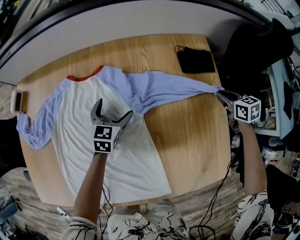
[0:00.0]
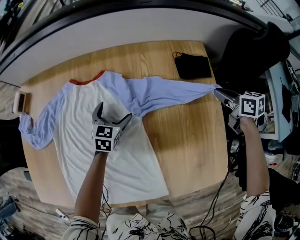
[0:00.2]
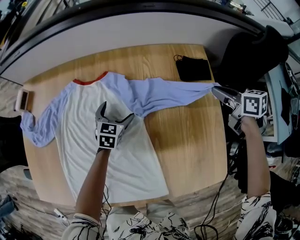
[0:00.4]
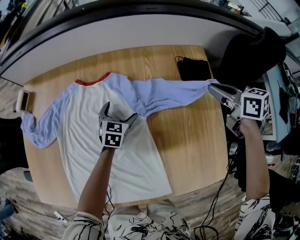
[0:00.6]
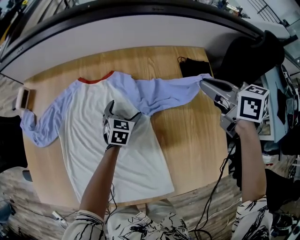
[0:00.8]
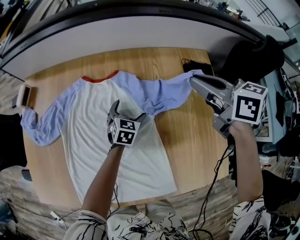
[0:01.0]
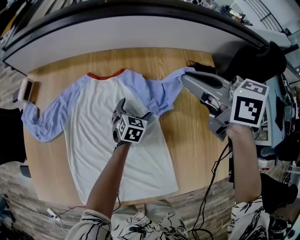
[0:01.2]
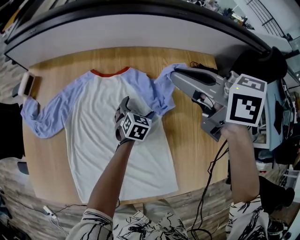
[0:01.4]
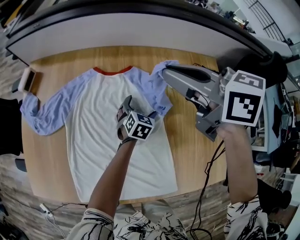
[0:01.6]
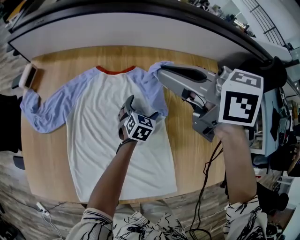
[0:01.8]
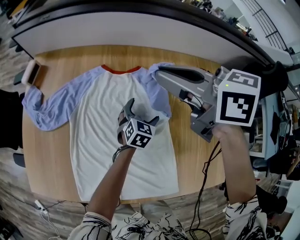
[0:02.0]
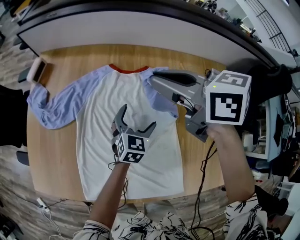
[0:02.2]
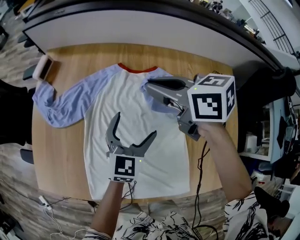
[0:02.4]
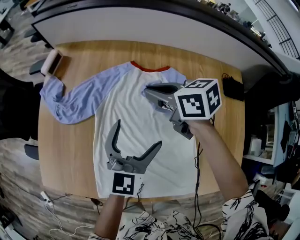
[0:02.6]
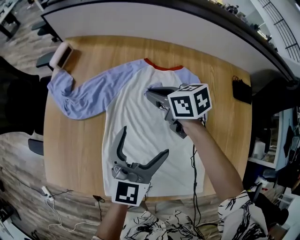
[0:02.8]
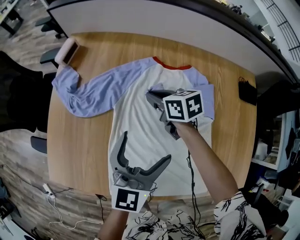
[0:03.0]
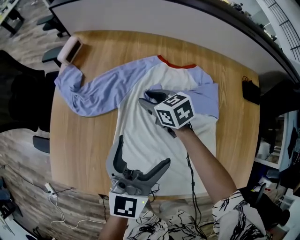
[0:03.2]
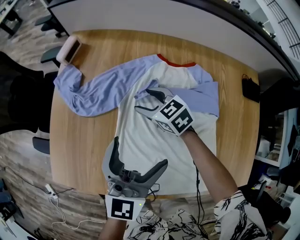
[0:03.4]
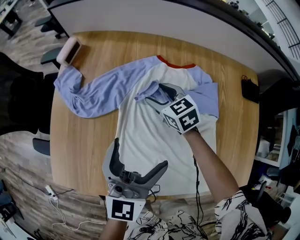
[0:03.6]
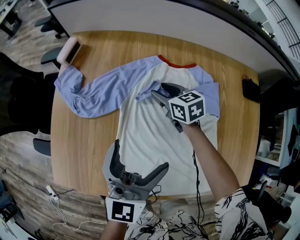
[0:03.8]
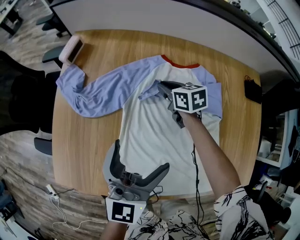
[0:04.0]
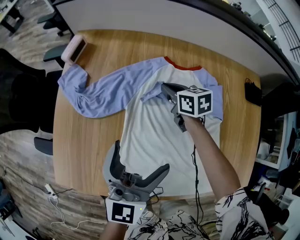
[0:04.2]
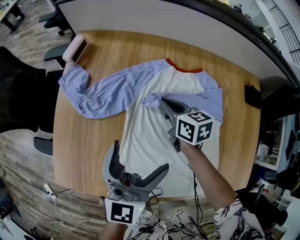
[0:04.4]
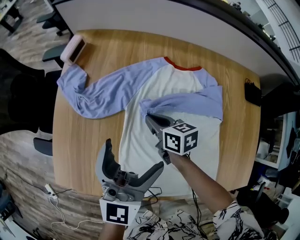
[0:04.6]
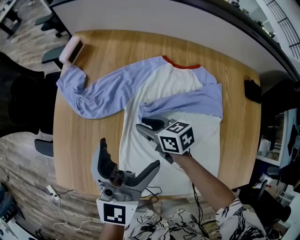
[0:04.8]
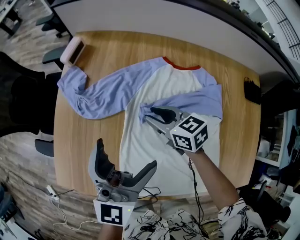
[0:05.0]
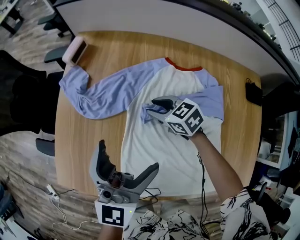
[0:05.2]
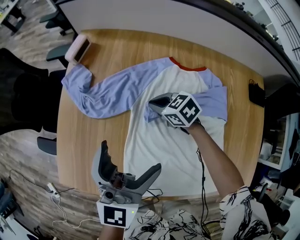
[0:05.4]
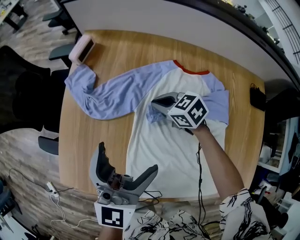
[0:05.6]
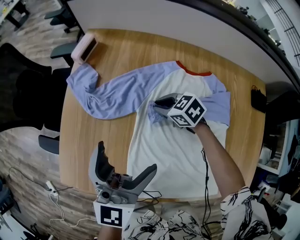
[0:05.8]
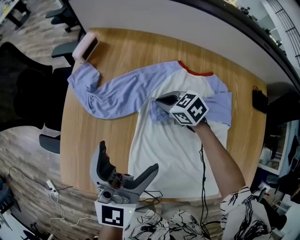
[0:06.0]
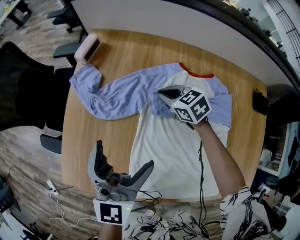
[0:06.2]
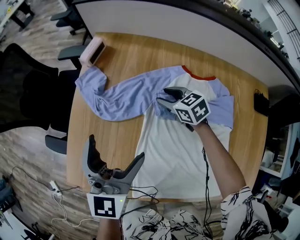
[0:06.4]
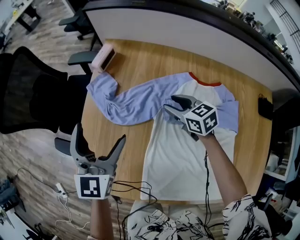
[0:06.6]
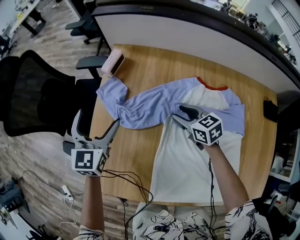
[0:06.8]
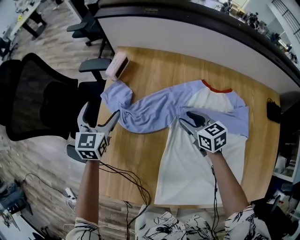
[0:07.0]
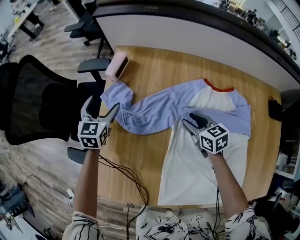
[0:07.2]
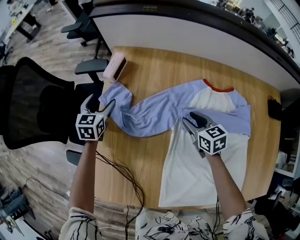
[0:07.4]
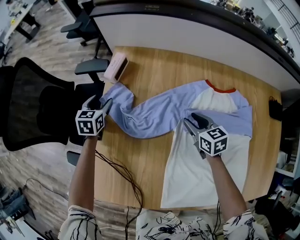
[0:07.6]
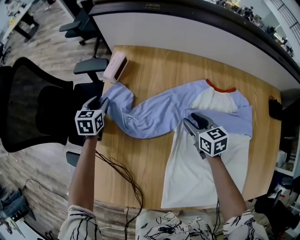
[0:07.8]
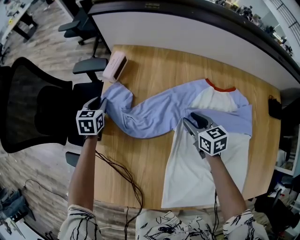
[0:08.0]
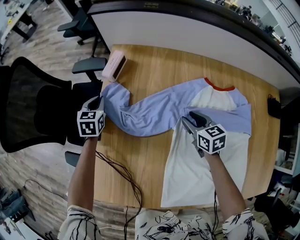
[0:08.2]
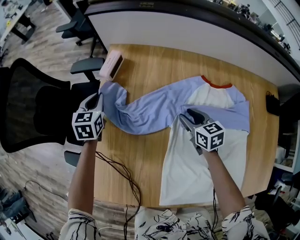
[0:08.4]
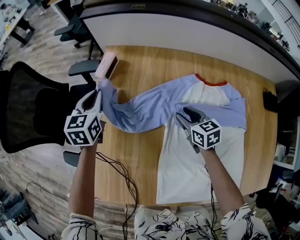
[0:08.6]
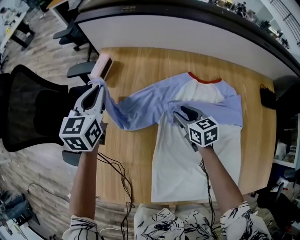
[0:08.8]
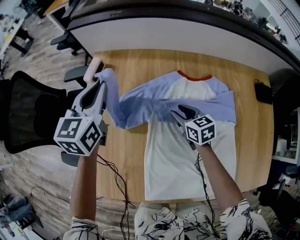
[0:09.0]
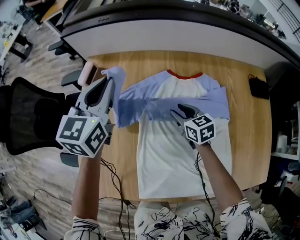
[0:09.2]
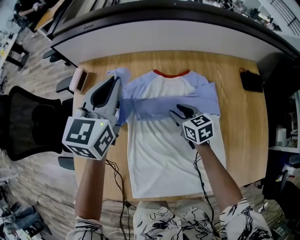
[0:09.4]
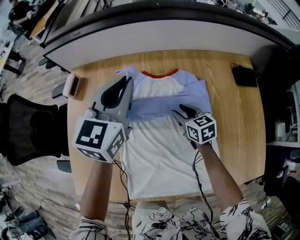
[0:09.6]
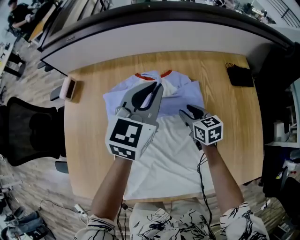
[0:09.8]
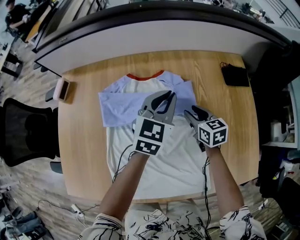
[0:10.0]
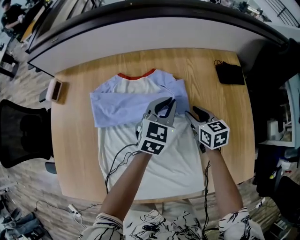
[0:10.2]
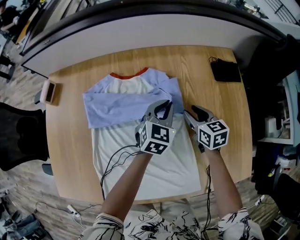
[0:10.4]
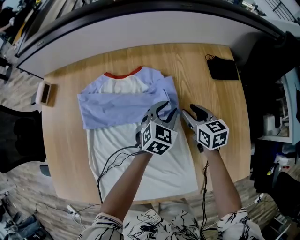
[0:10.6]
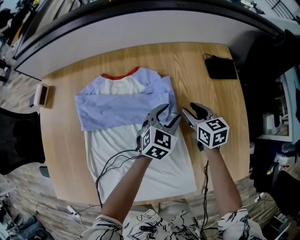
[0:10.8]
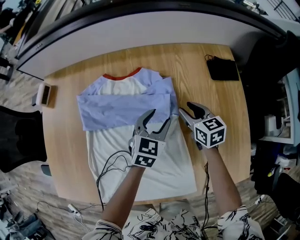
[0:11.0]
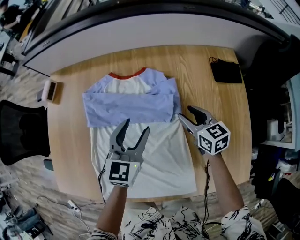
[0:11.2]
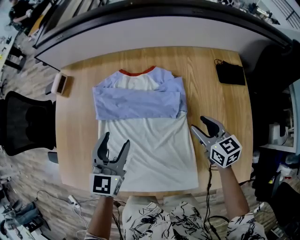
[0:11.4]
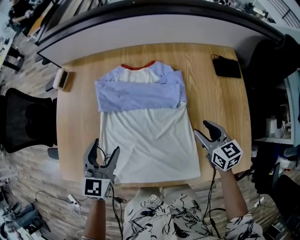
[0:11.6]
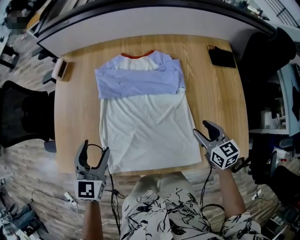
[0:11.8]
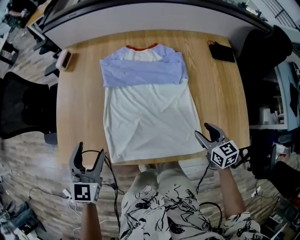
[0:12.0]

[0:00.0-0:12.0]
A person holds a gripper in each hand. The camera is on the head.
0:00.0 to 0:01.6: The right gripper travels to the left and upward by about 50 cm, and swivels some 40 degrees.
0:01.6 to 0:03.0: The left gripper travels to the left and upward by about 35 cm, and tilts its fingers about 30 degrees upward. Meanwhile the right gripper heads downward and to the left, covering about 35 cm.
0:03.0 to 0:04.4: The right gripper goes to the left and returns, some 5 cm each way, and opens, then closes again. Meanwhile the left gripper travels to the left by some 5 cm.
0:04.4 to 0:06.0: The left gripper moves to the left, about 5 cm; the right gripper travels downward and to the left by roughly 10 cm, and swivels some 40 degrees.
0:06.0 to 0:07.6: The left gripper moves forward, downward and to the left, some 40 cm, angles its fingers downward, by about 40 degrees, and closes its fingers; the right gripper turns by about 30 degrees.
0:07.6 to 0:09.0: The left gripper shifts roughly 30 cm upward and to the right, swivels some 20 degrees, and closes its fingers, while the right gripper travels to the right by roughly 5 cm.
0:09.0 to 0:10.4: Both grippers move to the right, about 40 cm. The left gripper swivels roughly 30 degrees.
0:10.4 to 0:12.0: The left gripper shifts roughly 50 cm to the left and backward, rotates roughly 20 degrees, and opens, while the right gripper travels backward by about 25 cm.

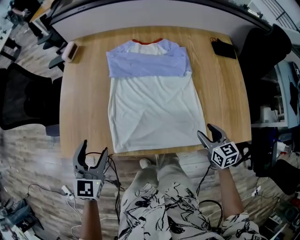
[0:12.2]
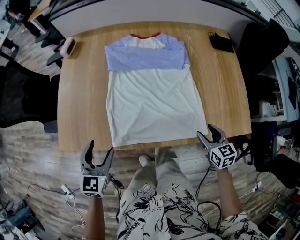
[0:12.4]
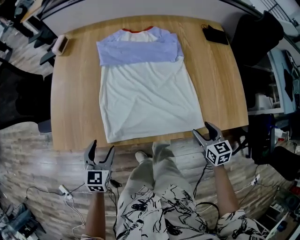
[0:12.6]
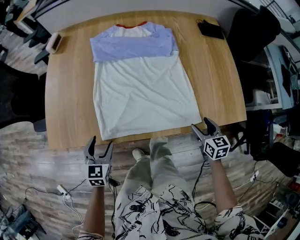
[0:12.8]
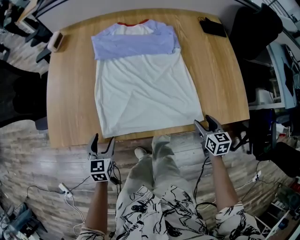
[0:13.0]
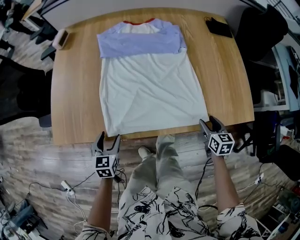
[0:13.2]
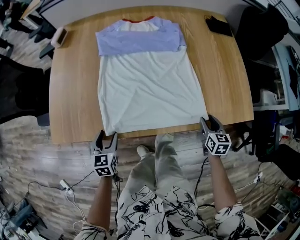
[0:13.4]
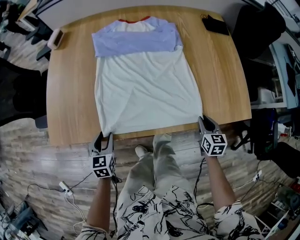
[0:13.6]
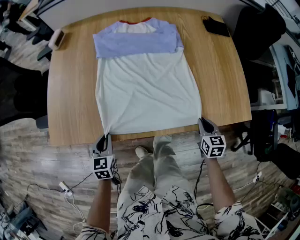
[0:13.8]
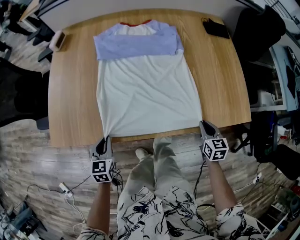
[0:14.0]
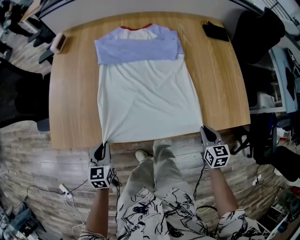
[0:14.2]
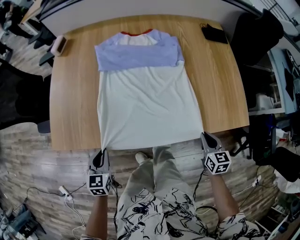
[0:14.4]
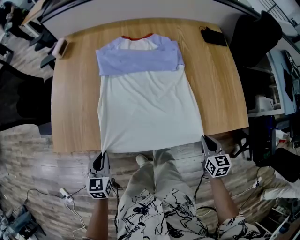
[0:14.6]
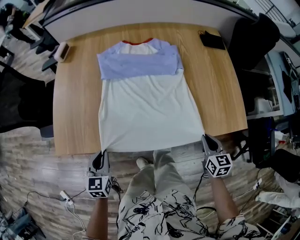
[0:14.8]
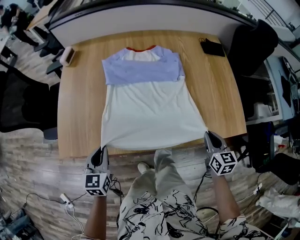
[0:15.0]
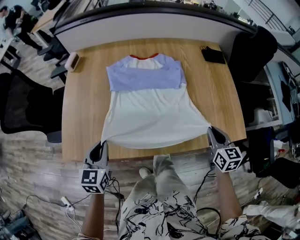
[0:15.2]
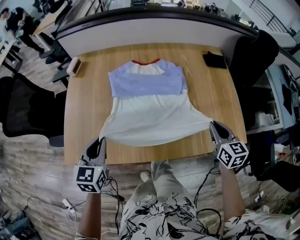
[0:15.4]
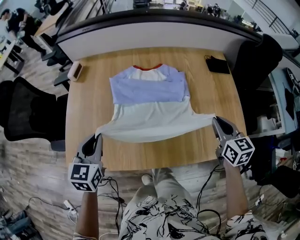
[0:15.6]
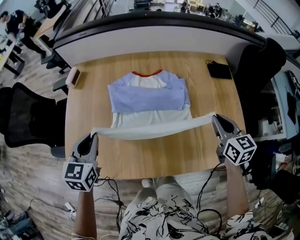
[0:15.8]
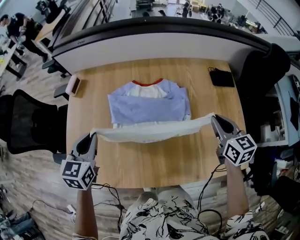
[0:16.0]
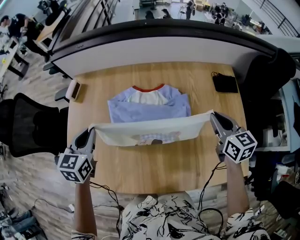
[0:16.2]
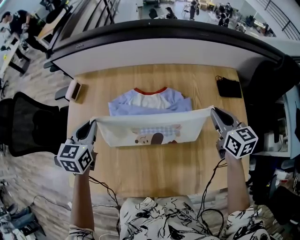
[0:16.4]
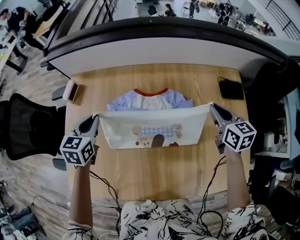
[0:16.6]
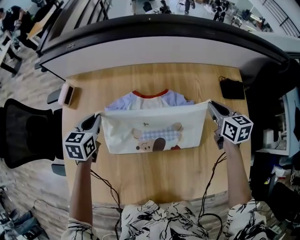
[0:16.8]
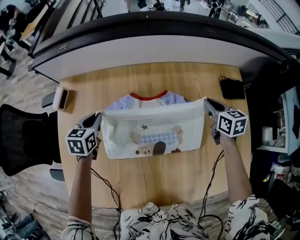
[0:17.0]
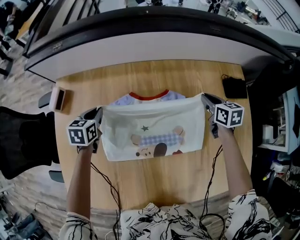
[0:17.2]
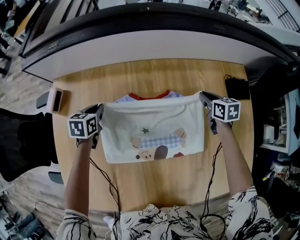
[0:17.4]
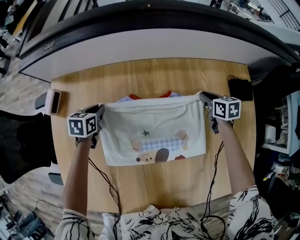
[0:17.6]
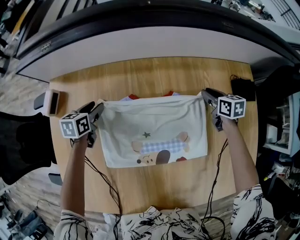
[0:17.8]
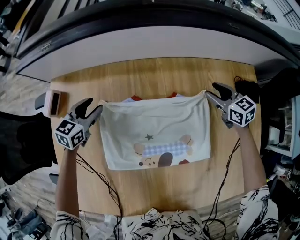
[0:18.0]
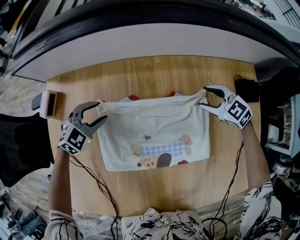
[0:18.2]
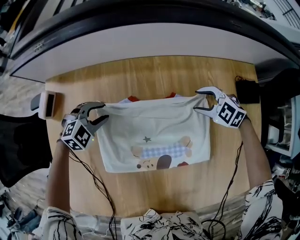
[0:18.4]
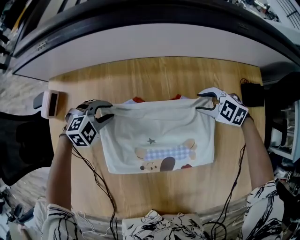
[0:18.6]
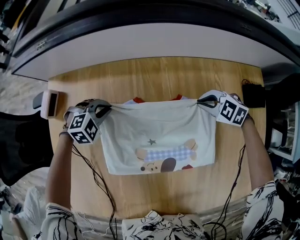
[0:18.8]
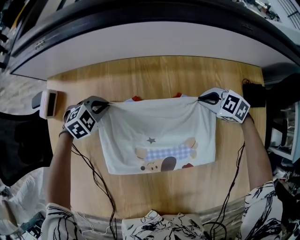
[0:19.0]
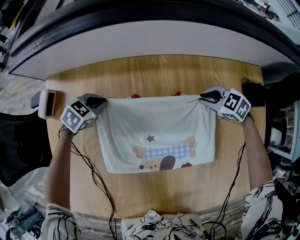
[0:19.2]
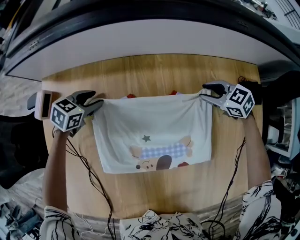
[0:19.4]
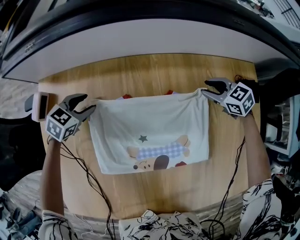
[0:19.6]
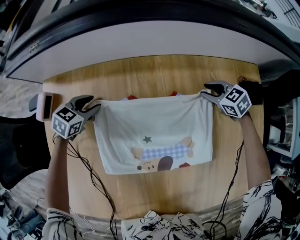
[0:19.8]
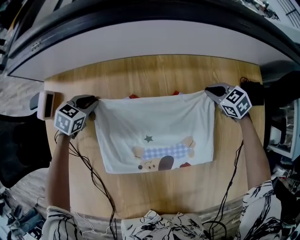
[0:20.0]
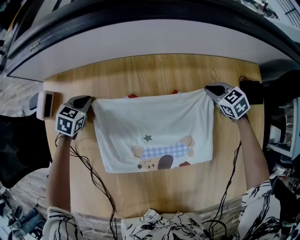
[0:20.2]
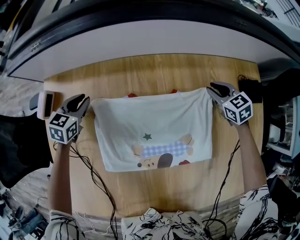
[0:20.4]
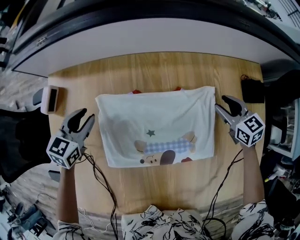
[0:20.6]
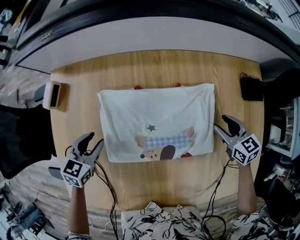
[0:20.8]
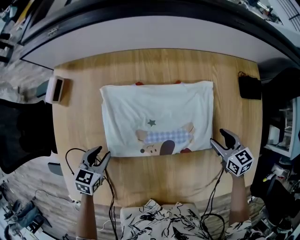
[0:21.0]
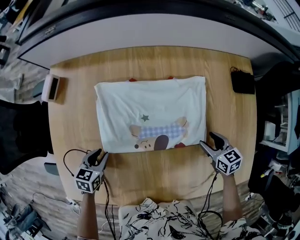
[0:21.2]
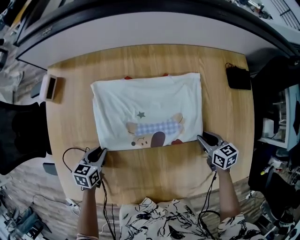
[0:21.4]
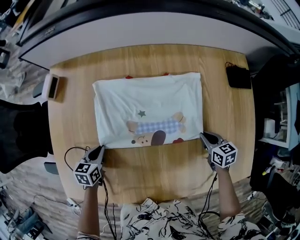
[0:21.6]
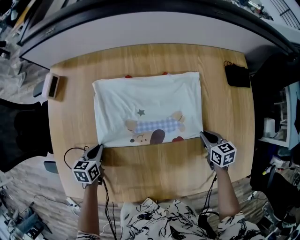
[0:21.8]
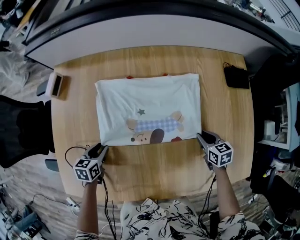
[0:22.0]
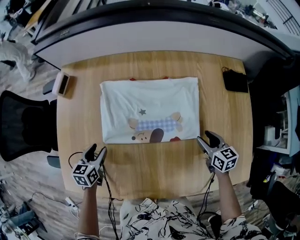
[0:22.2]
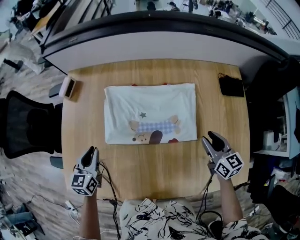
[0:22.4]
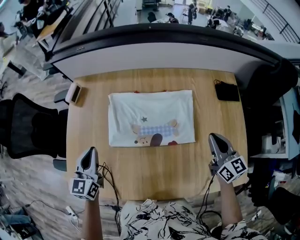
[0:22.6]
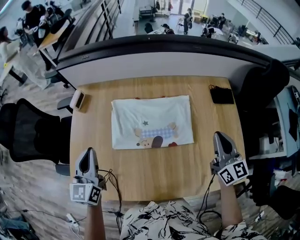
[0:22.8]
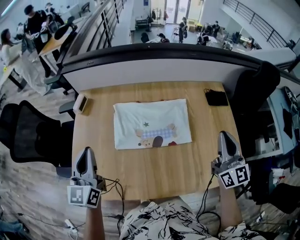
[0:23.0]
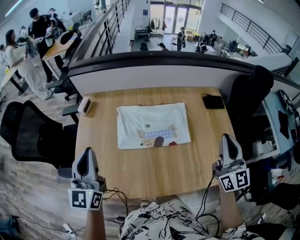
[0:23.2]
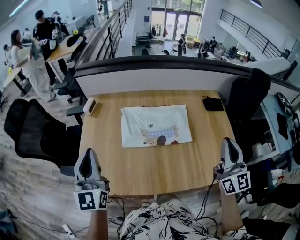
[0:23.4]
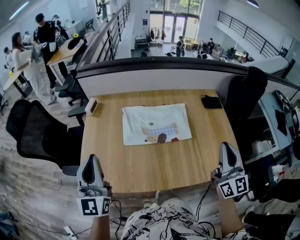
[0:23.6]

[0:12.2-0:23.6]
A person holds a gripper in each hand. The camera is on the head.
0:12.2 to 0:13.6: The left gripper heads downward, covering about 20 cm; the right gripper goes some 10 cm downward and backward.
0:13.6 to 0:15.0: Both grippers move upward, approximately 15 cm.
0:15.0 to 0:16.4: Both grippers travel together forward, about 35 cm.
0:16.4 to 0:17.8: The grippers both shift downward and forward by about 30 cm. The left gripper turns by about 30 degrees. The right gripper swivels roughly 20 degrees.
0:17.8 to 0:19.4: The left gripper goes upward and returns, approximately 5 cm each way, swivels roughly 30 degrees, and closes and opens again. The right gripper changes its angle by approximately 50 degrees.
0:19.4 to 0:20.8: Both grippers move backward, some 15 cm. The right gripper swivels approximately 30 degrees.
0:20.8 to 0:22.2: The grippers both shift backward by roughly 15 cm. The left gripper changes its angle by approximately 20 degrees. Meanwhile the right gripper closes and opens again.
0:22.2 to 0:23.6: Both grippers move upward and backward, about 50 cm. The right gripper angles its fingers upward, by some 50 degrees, and closes up. The left gripper tilts its fingers roughly 50 degrees upward, and closes up.
